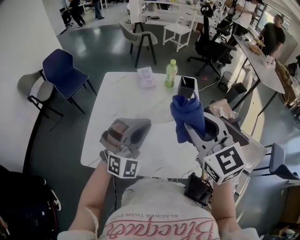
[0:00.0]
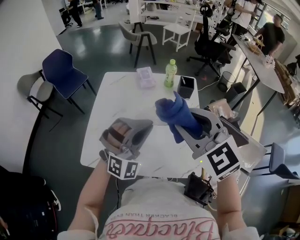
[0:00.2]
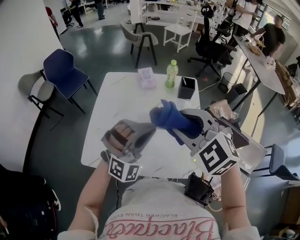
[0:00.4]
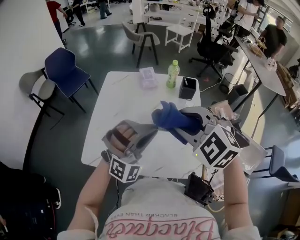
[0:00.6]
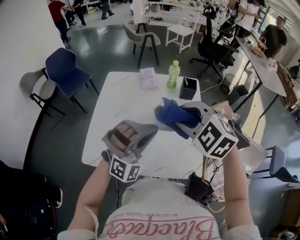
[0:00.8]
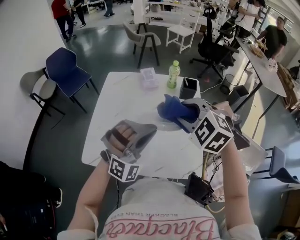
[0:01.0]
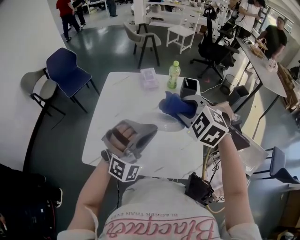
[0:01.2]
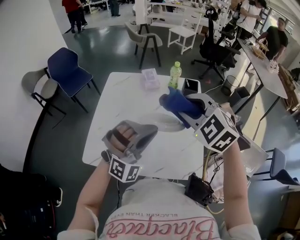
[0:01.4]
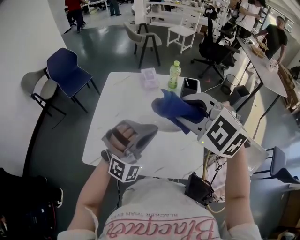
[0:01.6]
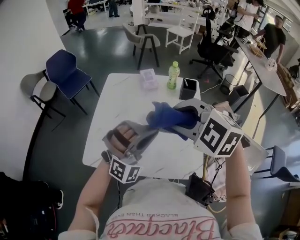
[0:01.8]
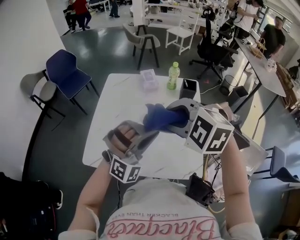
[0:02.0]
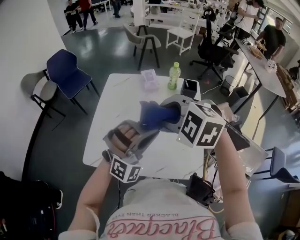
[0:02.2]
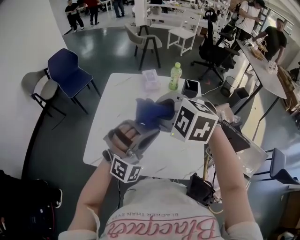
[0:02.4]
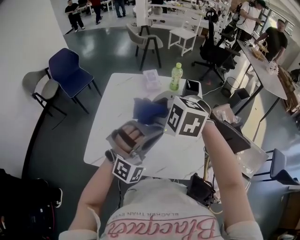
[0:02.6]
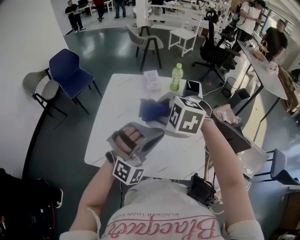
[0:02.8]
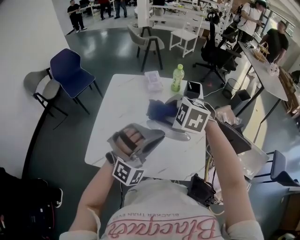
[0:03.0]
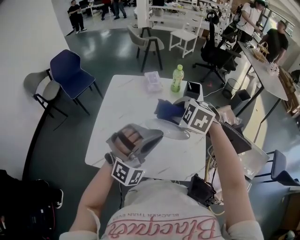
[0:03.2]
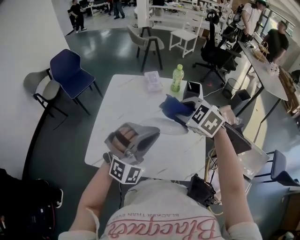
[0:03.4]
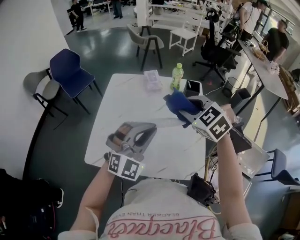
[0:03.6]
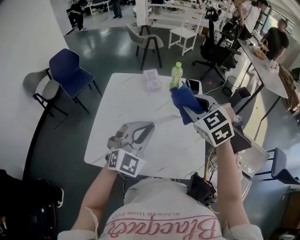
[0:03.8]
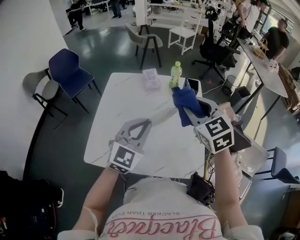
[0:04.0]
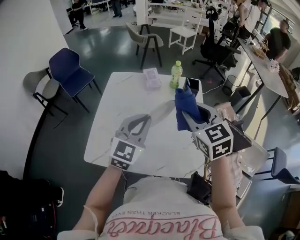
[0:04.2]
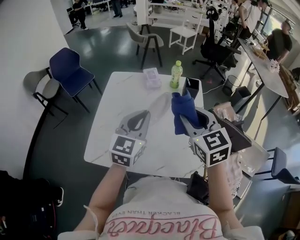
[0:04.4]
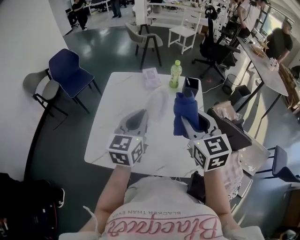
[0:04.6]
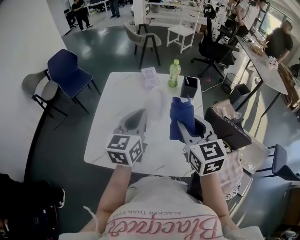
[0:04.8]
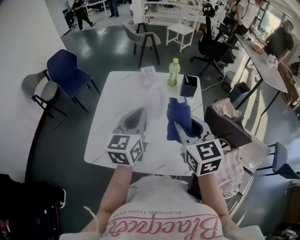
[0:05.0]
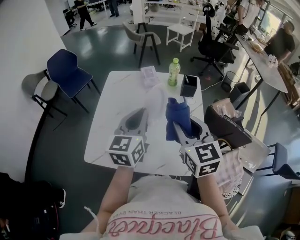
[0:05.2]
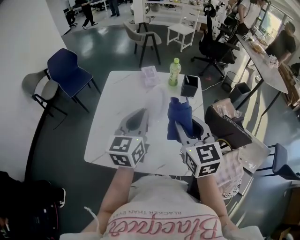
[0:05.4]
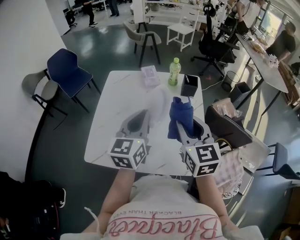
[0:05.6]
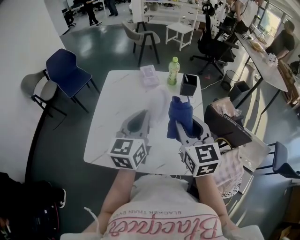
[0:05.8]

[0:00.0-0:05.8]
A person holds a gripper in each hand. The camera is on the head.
0:00.0 to 0:01.4: The right gripper moves forward, roughly 5 cm, and changes its angle by approximately 40 degrees.
0:01.4 to 0:02.8: The right gripper heads to the left and downward, covering about 10 cm, and changes its angle by approximately 20 degrees.
0:02.8 to 0:04.4: The right gripper shifts about 10 cm to the right, and tilts its fingers some 30 degrees upward. Meanwhile the left gripper heads forward and to the left, covering approximately 10 cm, and twists about 70 degrees counterclockwise, seen from behind.
0:04.4 to 0:05.8: The grippers move only a little.

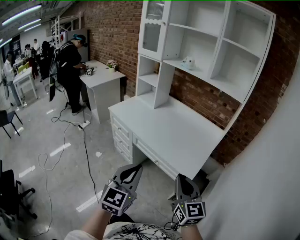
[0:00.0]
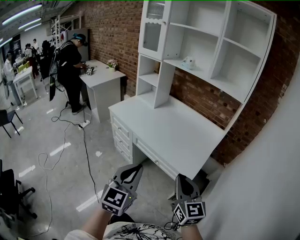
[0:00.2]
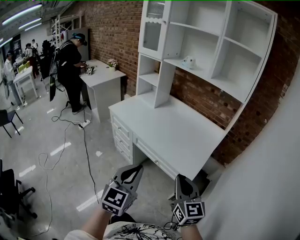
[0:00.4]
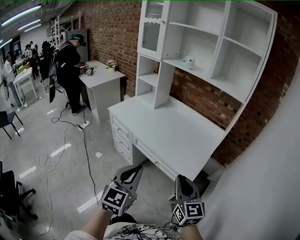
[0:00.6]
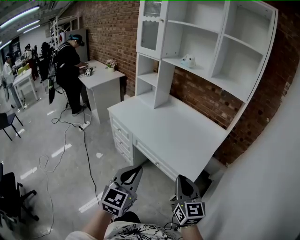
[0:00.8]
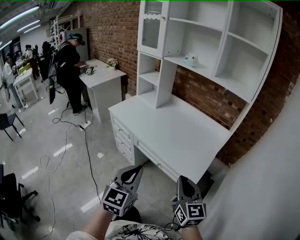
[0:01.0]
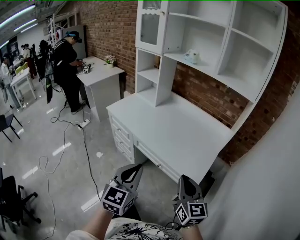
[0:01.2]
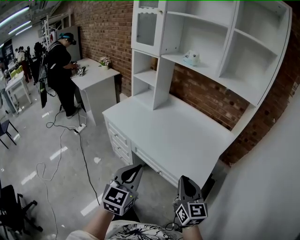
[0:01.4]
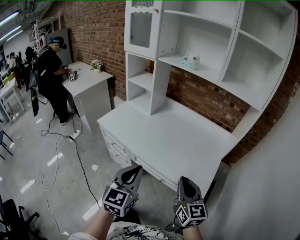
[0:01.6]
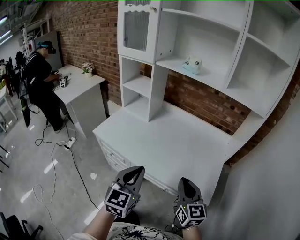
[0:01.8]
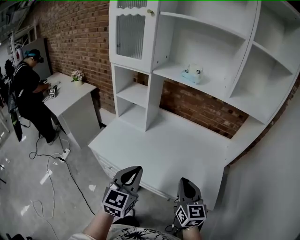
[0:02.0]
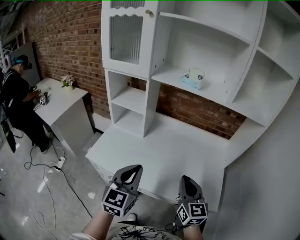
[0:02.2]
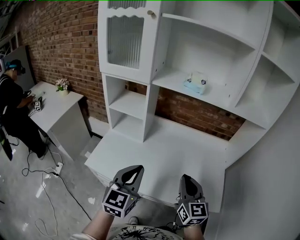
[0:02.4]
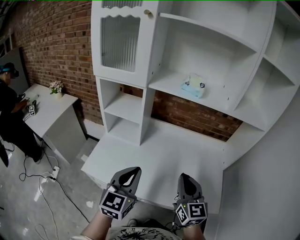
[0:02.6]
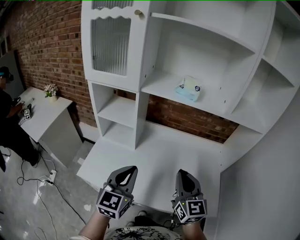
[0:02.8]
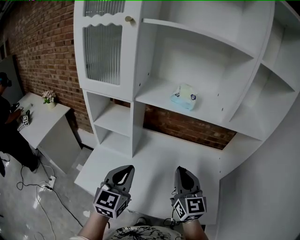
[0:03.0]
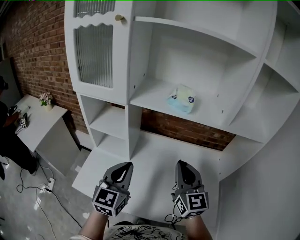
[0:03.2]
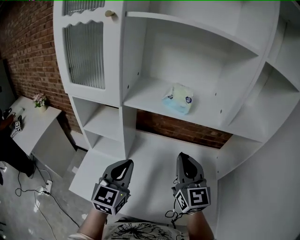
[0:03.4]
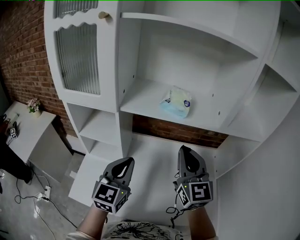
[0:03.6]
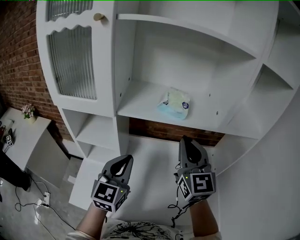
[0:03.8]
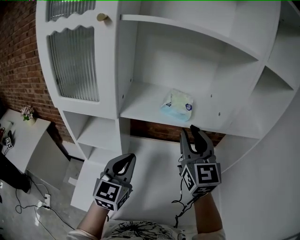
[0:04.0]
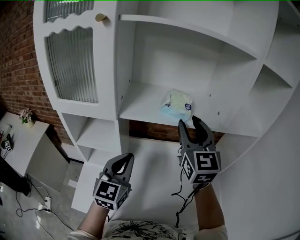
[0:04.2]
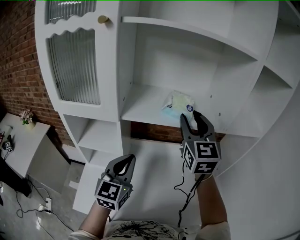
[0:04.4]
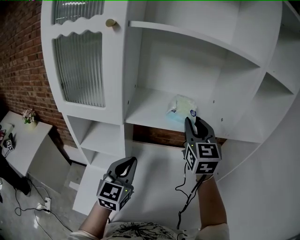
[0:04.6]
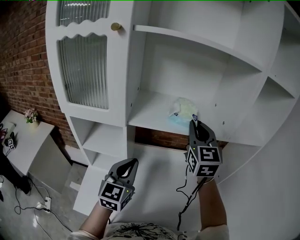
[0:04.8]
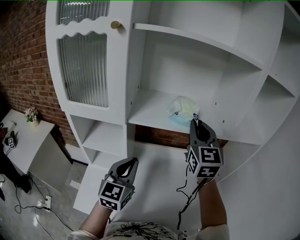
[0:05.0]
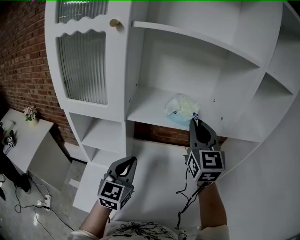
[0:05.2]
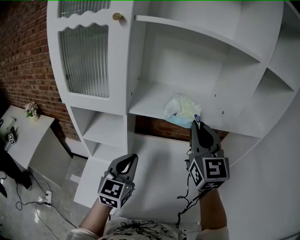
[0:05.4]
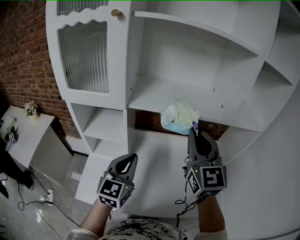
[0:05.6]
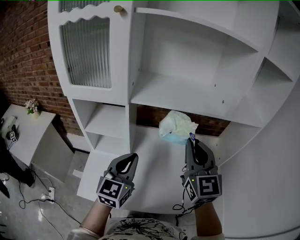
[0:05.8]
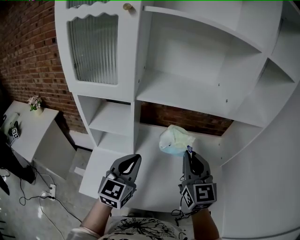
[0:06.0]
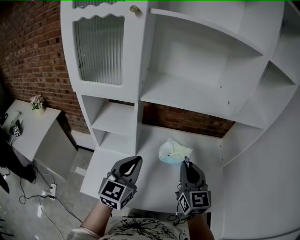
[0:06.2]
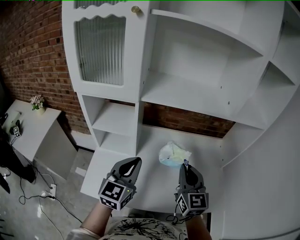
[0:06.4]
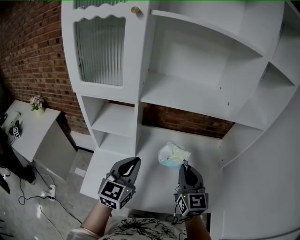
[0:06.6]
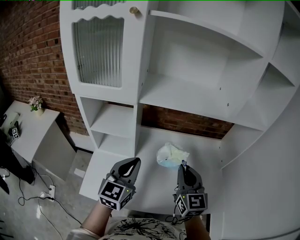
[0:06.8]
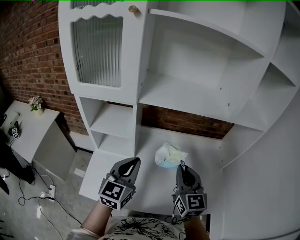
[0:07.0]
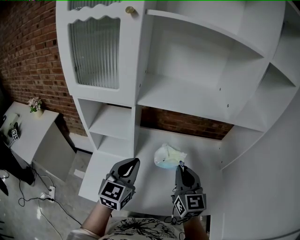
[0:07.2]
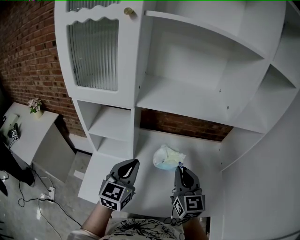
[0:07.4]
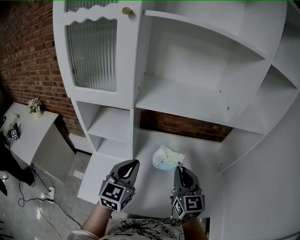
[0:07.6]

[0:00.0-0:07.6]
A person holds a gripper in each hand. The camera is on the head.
0:00.0 to 0:01.6: The two grippers go approximately 20 cm forward.
0:01.6 to 0:03.0: Both grippers move forward and to the left, roughly 35 cm. The right gripper rotates approximately 20 degrees.
0:03.0 to 0:04.6: The left gripper travels forward by roughly 15 cm. Meanwhile the right gripper goes about 25 cm forward and upward, and opens up.
0:04.6 to 0:06.0: The left gripper moves backward, approximately 10 cm. Meanwhile the right gripper travels backward and downward by about 20 cm.
0:06.0 to 0:07.6: The right gripper shifts some 5 cm downward.

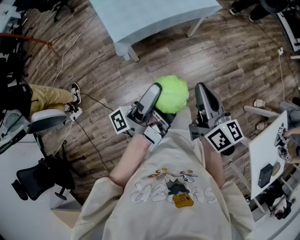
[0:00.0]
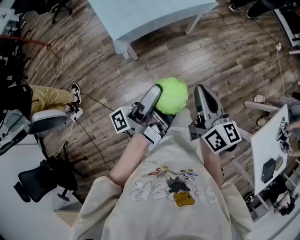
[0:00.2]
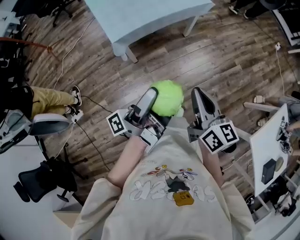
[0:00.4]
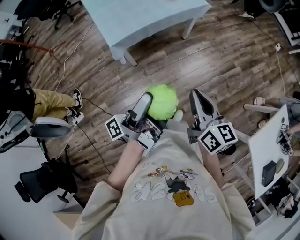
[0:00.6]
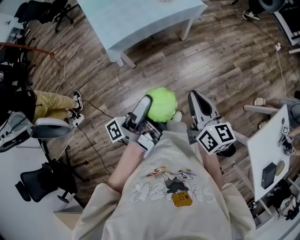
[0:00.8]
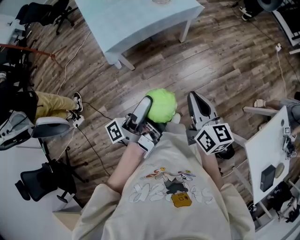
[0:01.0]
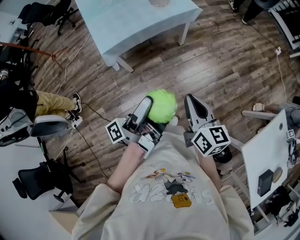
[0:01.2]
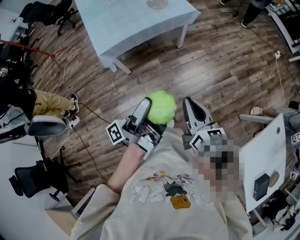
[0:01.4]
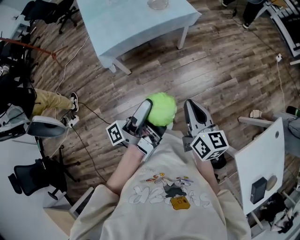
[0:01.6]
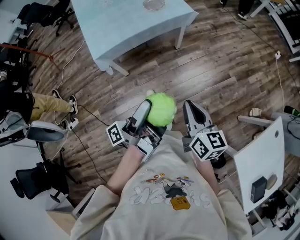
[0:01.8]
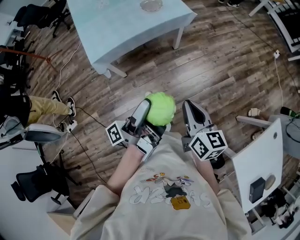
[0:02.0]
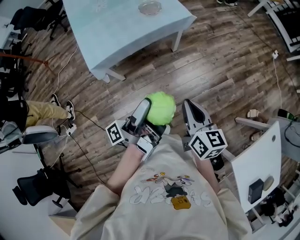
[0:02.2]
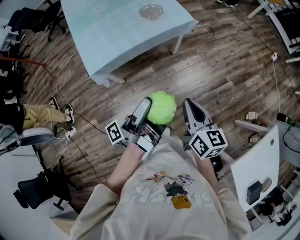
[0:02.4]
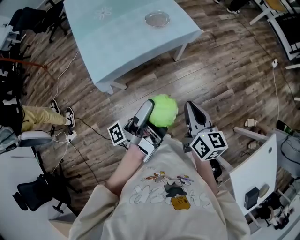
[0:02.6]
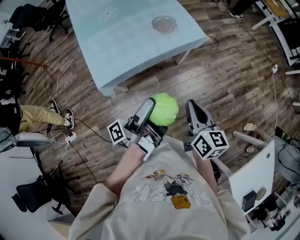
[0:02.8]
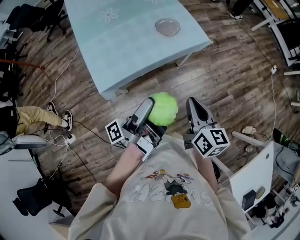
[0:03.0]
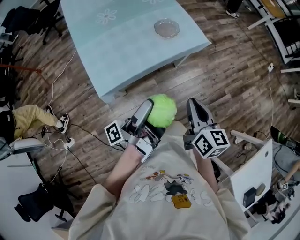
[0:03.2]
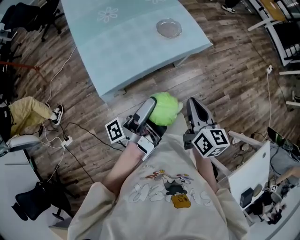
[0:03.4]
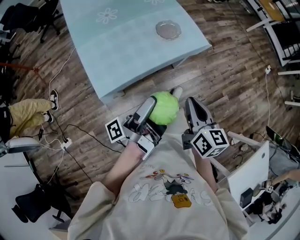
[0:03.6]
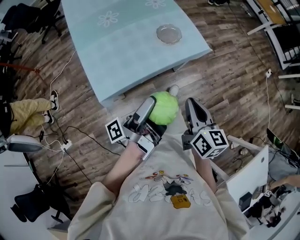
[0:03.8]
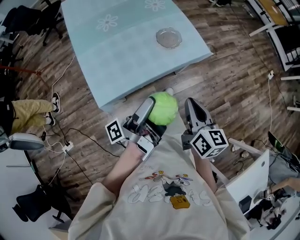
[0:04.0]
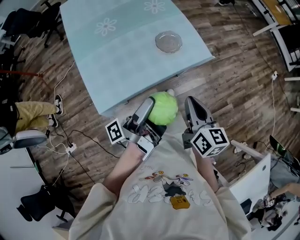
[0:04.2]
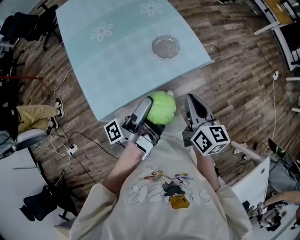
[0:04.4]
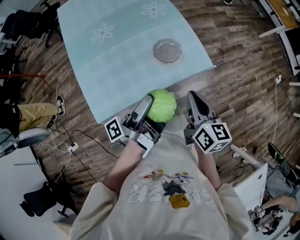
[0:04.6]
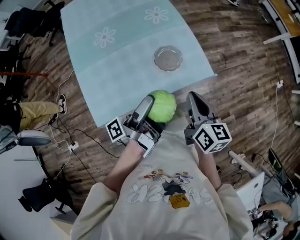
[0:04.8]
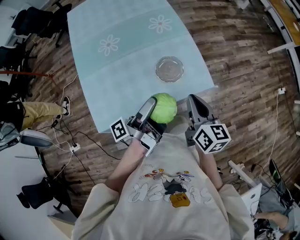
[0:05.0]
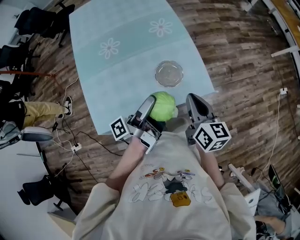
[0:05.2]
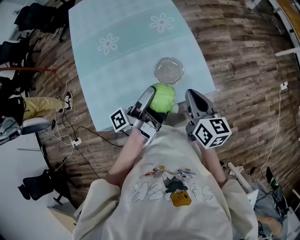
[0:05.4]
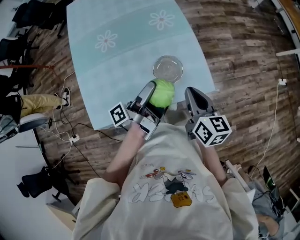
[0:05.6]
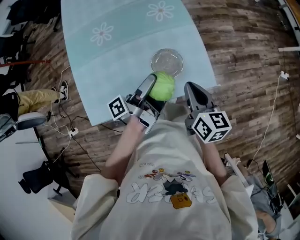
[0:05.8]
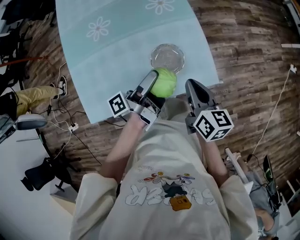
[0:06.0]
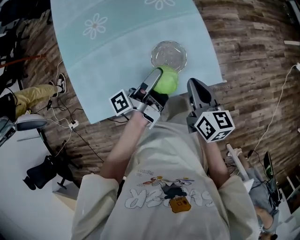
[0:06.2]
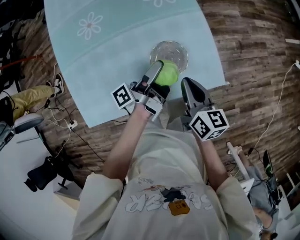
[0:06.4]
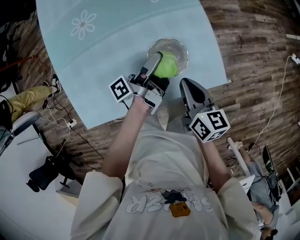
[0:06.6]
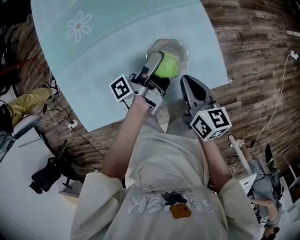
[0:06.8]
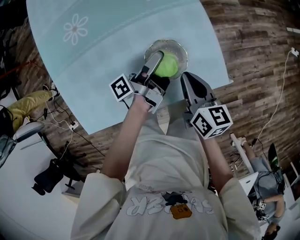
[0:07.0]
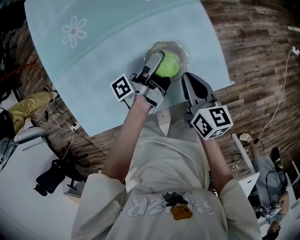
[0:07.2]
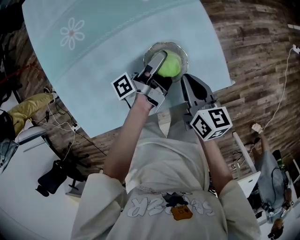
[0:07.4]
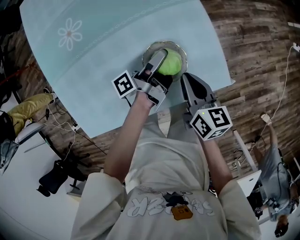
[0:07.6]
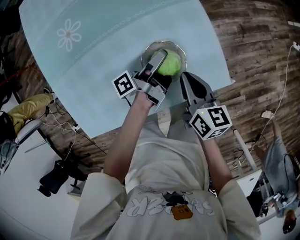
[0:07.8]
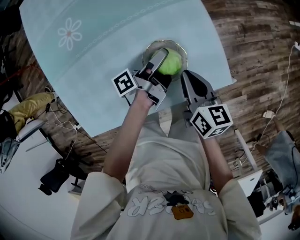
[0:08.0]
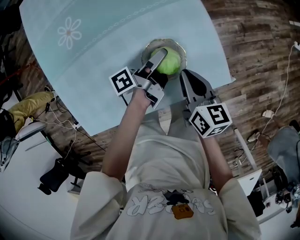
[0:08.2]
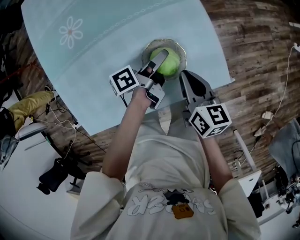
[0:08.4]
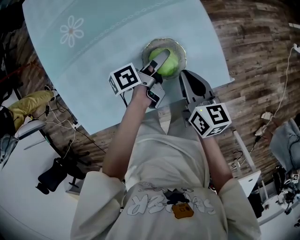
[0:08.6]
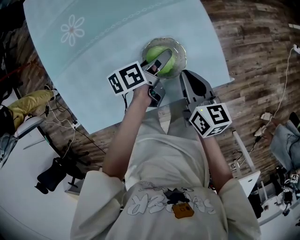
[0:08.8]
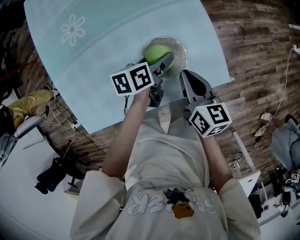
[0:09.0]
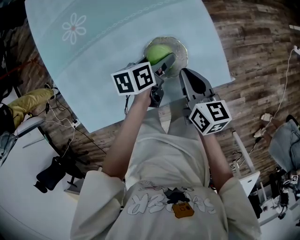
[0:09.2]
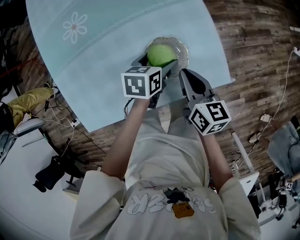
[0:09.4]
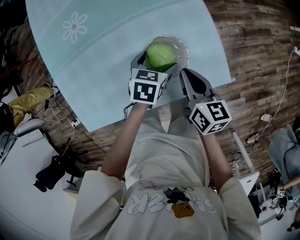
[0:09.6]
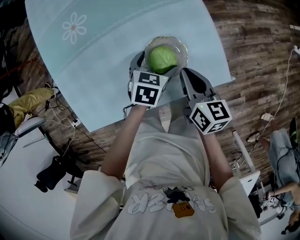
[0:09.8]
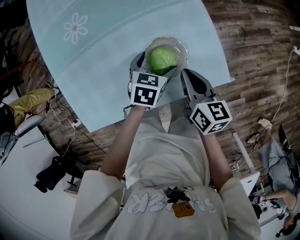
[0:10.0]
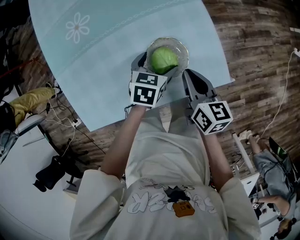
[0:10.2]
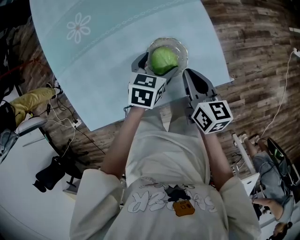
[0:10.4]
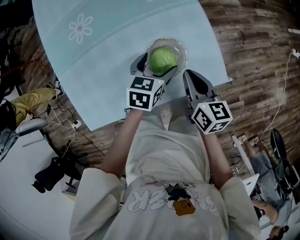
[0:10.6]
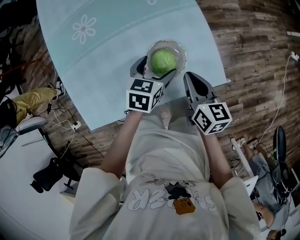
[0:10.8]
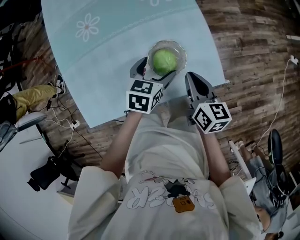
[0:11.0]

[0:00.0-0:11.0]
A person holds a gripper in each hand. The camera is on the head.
0:00.0 to 0:01.6: The right gripper moves approximately 20 cm.
0:01.6 to 0:03.2: The right gripper shifts by about 35 cm.
0:03.2 to 0:04.8: The right gripper ends up about 30 cm from where it was.
0:04.8 to 0:06.2: The right gripper ends up about 20 cm from where it was.
0:06.2 to 0:07.8: The right gripper travels downward by approximately 10 cm.
